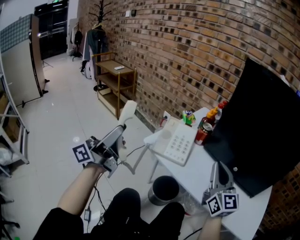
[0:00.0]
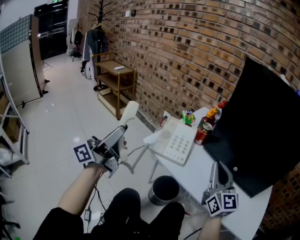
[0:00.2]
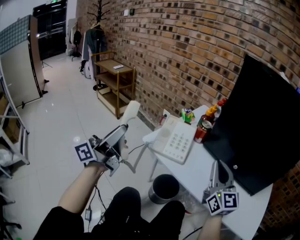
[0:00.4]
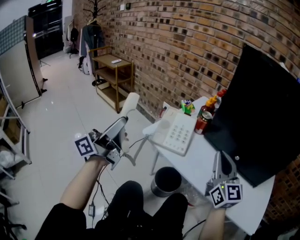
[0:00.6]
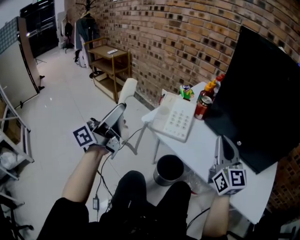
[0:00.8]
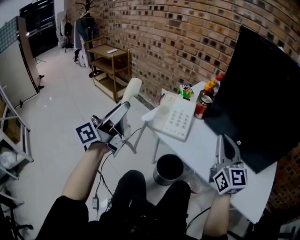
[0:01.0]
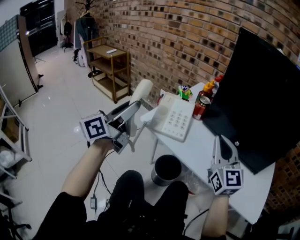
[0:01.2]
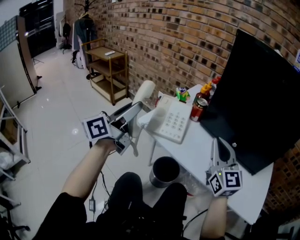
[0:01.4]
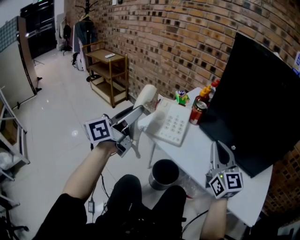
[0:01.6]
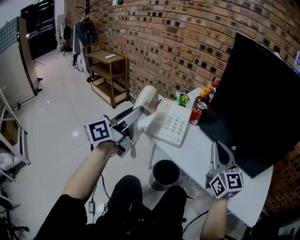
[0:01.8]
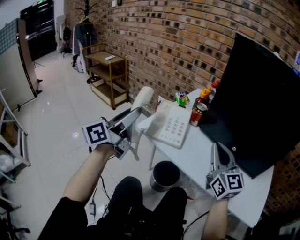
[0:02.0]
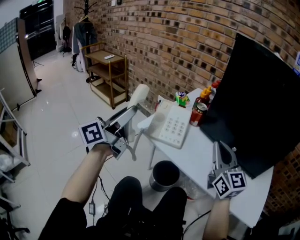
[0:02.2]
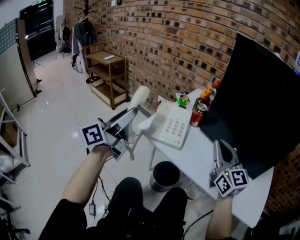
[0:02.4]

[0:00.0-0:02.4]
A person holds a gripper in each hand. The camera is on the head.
0:00.0 to 0:01.2: The left gripper goes some 10 cm forward and to the right, and swivels about 20 degrees.
0:01.2 to 0:02.4: The grippers move only a little.

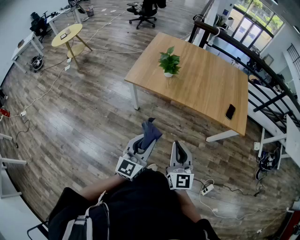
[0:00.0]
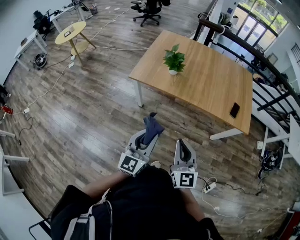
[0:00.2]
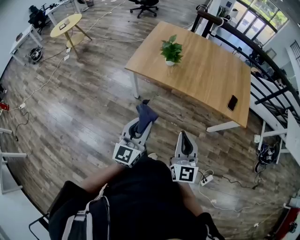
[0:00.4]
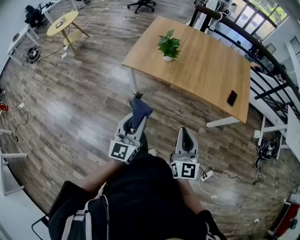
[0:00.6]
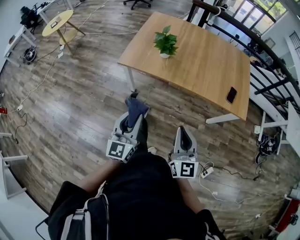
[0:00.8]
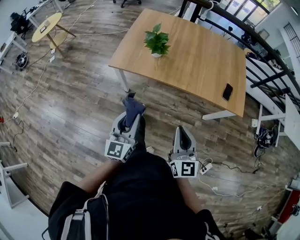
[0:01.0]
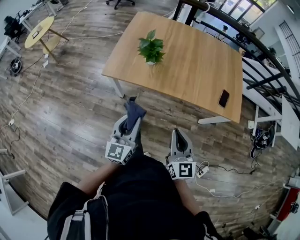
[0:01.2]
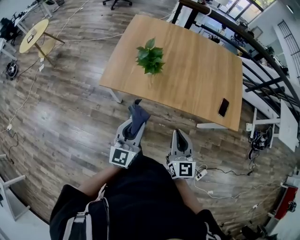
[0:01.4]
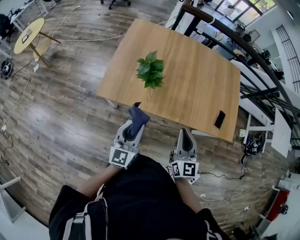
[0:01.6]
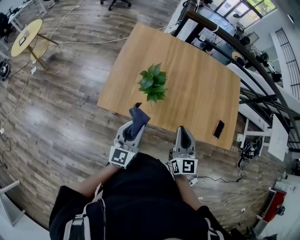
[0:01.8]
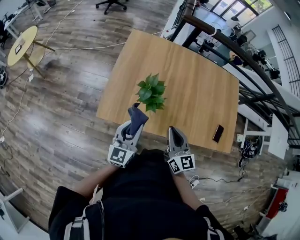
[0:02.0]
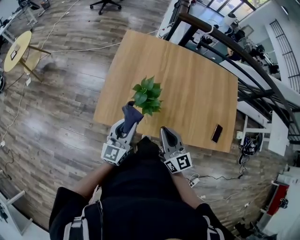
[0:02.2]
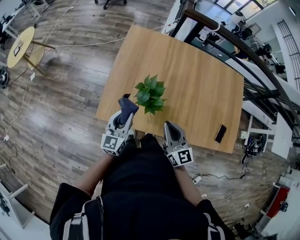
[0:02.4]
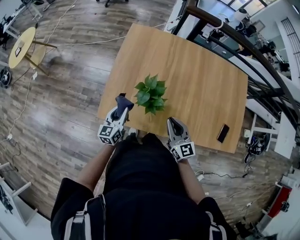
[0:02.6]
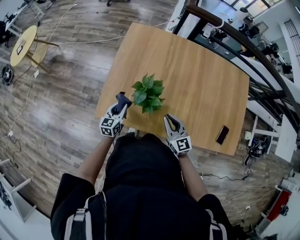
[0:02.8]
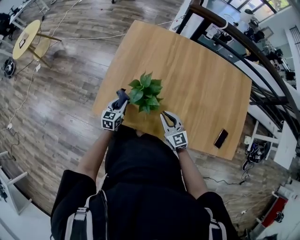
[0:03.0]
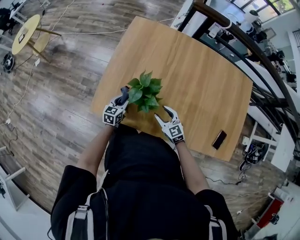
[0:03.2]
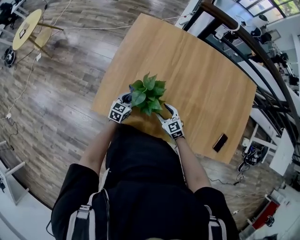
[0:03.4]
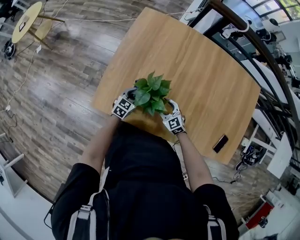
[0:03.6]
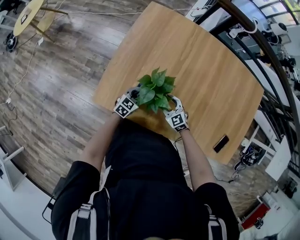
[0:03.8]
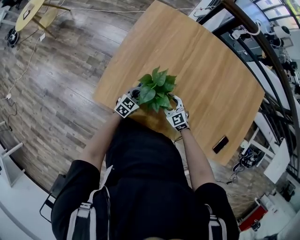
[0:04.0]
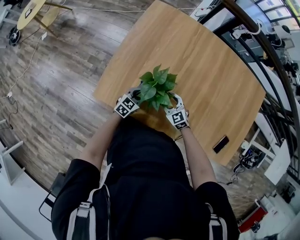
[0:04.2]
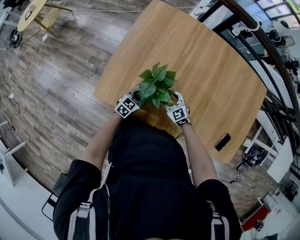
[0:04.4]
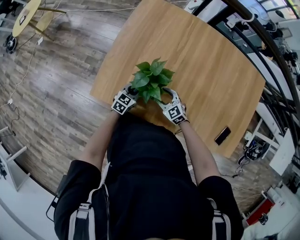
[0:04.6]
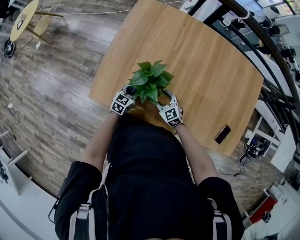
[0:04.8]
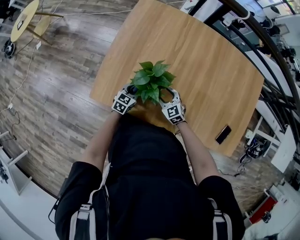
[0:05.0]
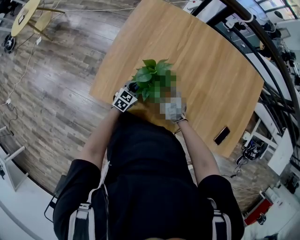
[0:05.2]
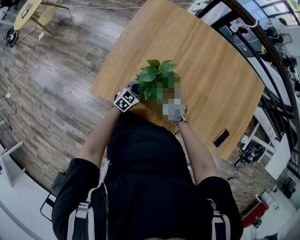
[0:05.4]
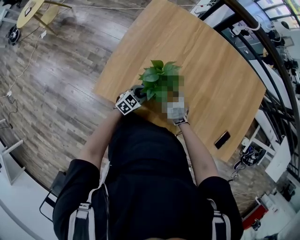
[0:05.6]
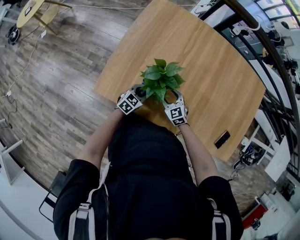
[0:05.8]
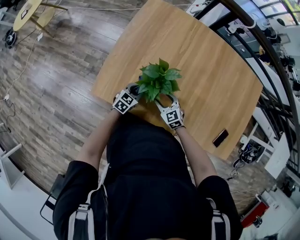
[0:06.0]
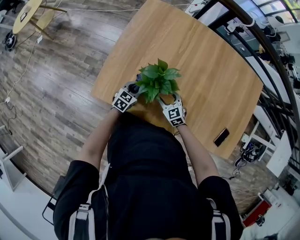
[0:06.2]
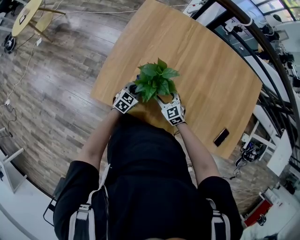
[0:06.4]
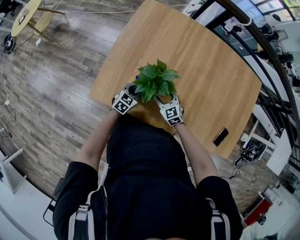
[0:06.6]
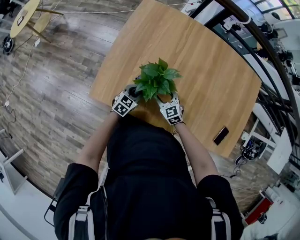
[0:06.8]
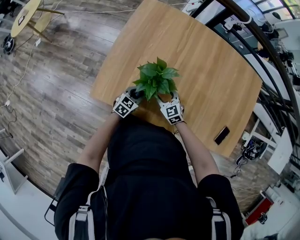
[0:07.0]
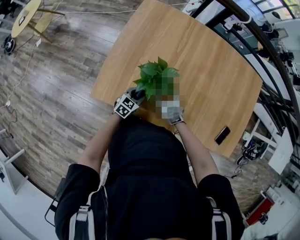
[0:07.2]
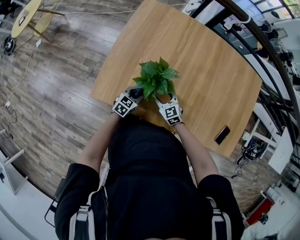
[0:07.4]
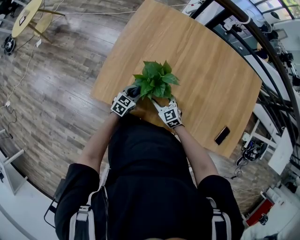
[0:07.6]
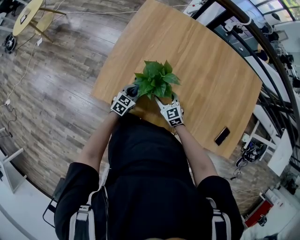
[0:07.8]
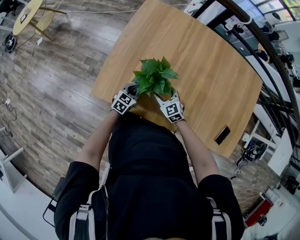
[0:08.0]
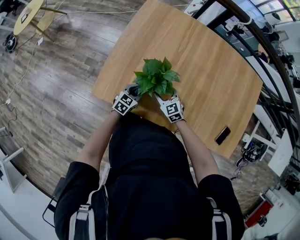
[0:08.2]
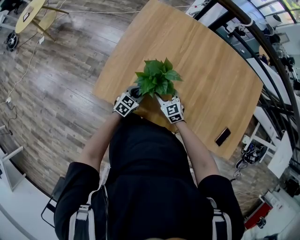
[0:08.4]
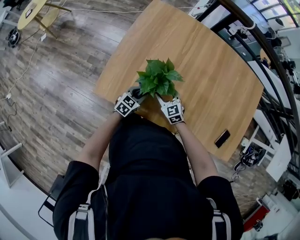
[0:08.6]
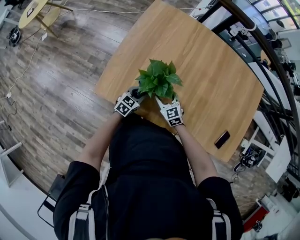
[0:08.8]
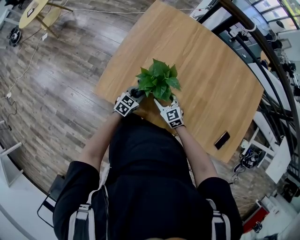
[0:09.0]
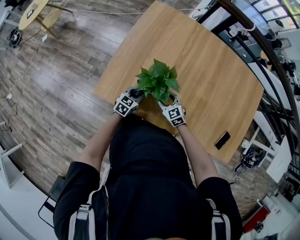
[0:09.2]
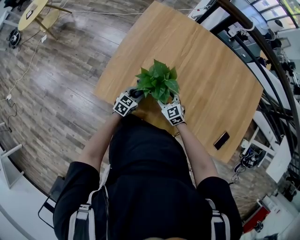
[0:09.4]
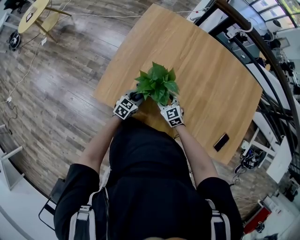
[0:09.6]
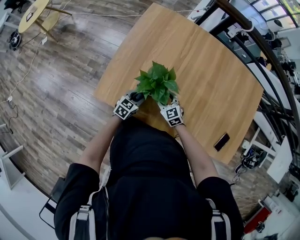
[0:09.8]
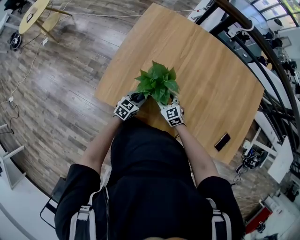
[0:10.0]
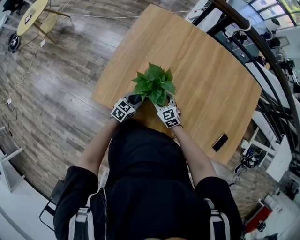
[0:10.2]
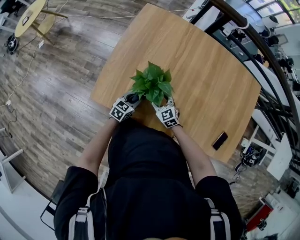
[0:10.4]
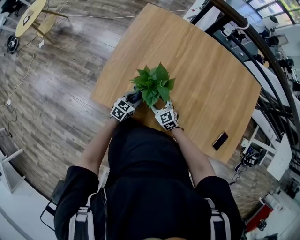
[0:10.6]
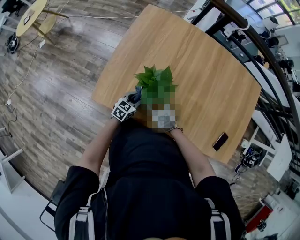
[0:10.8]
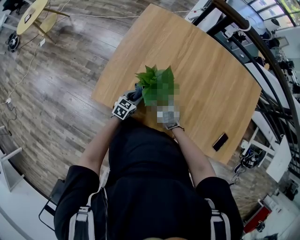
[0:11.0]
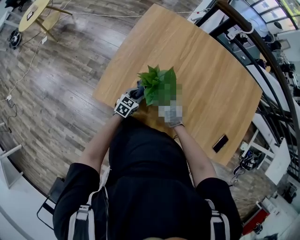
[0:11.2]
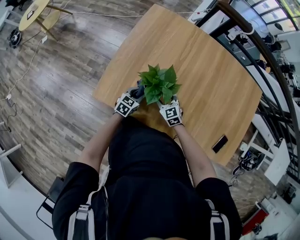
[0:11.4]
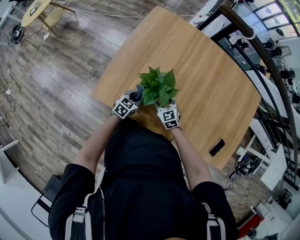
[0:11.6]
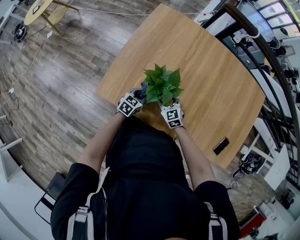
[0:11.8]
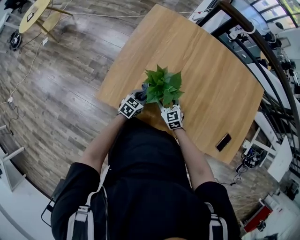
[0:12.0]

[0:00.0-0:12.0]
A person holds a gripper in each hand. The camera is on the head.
0:00.0 to 0:01.6: The two grippers go about 25 cm forward.
0:01.6 to 0:03.0: Both grippers travel together forward and downward, roughly 30 cm. The right gripper turns by about 30 degrees, while the left gripper turns by about 30 degrees.
0:03.0 to 0:04.4: The right gripper shifts about 15 cm downward and forward, turns by some 20 degrees, and opens up. Meanwhile the left gripper goes roughly 10 cm to the right and downward, and turns by roughly 20 degrees.
0:04.4 to 0:12.0: The grippers make only small movements.

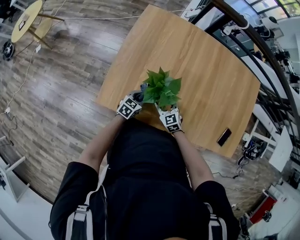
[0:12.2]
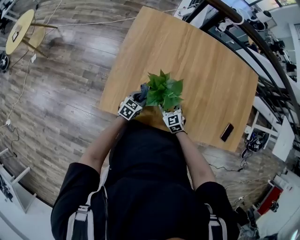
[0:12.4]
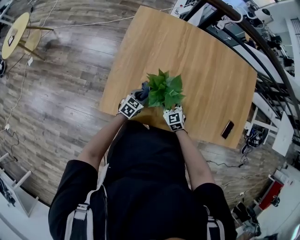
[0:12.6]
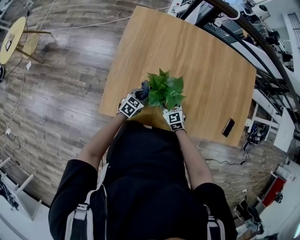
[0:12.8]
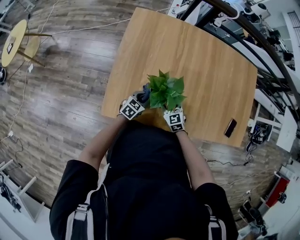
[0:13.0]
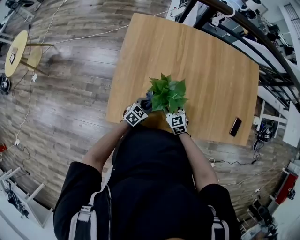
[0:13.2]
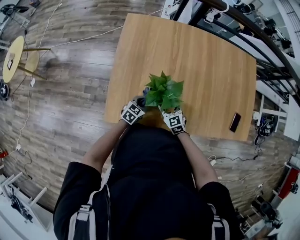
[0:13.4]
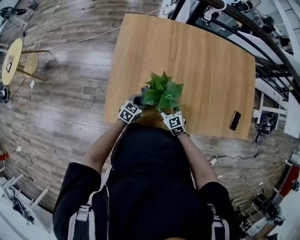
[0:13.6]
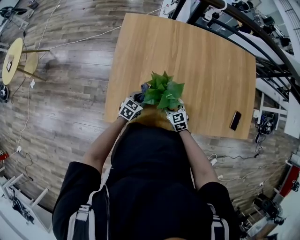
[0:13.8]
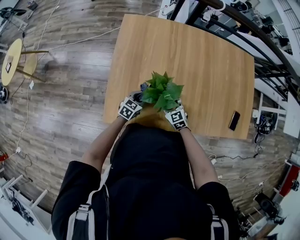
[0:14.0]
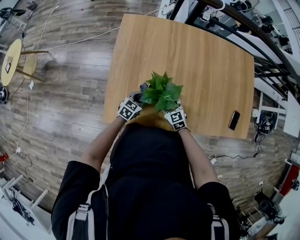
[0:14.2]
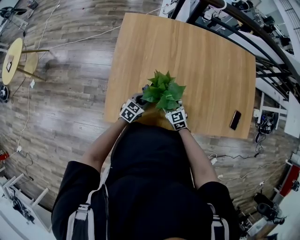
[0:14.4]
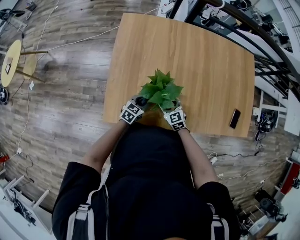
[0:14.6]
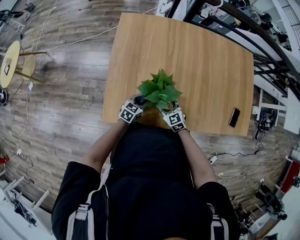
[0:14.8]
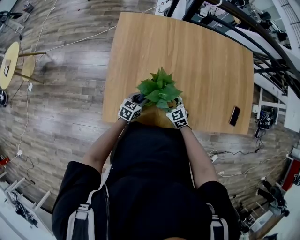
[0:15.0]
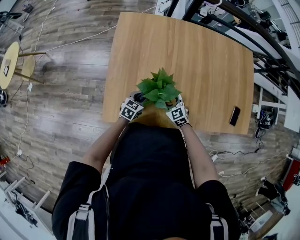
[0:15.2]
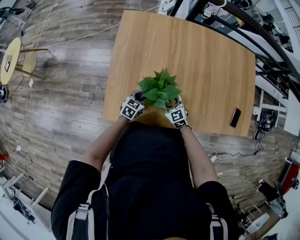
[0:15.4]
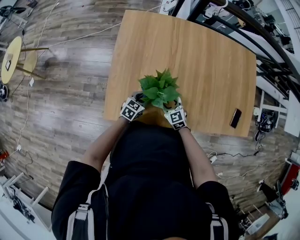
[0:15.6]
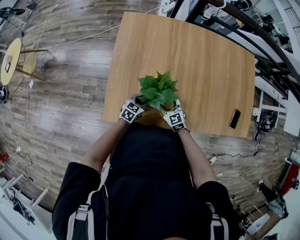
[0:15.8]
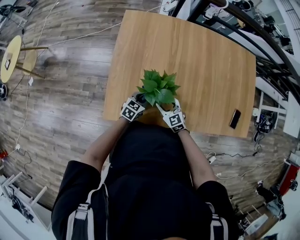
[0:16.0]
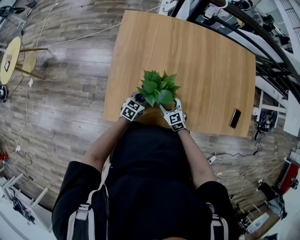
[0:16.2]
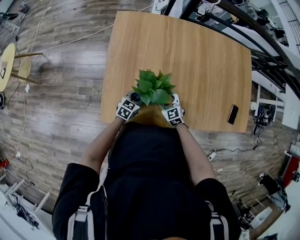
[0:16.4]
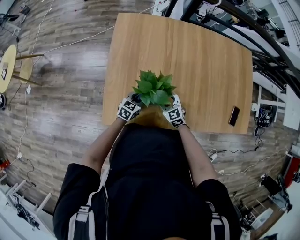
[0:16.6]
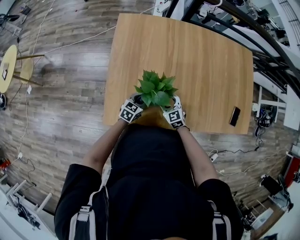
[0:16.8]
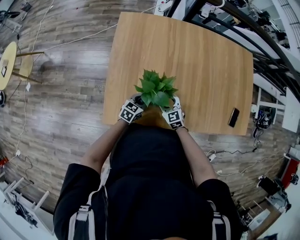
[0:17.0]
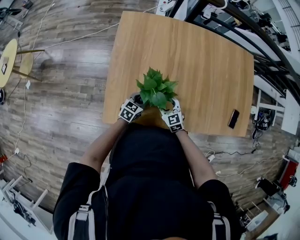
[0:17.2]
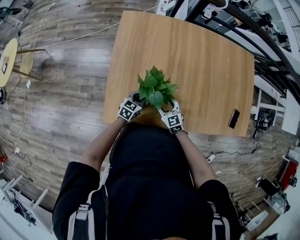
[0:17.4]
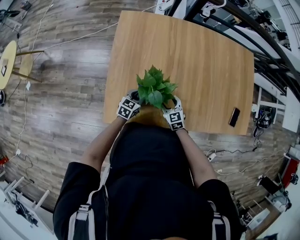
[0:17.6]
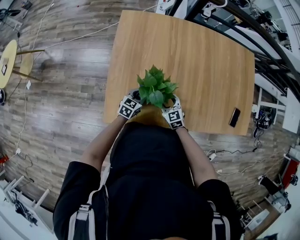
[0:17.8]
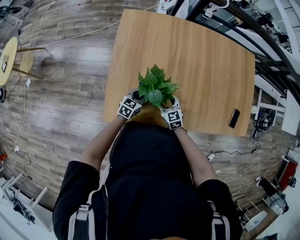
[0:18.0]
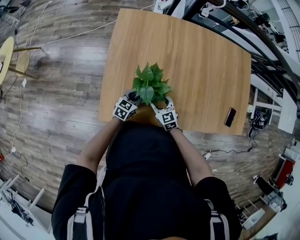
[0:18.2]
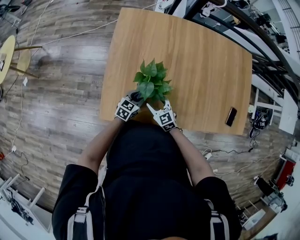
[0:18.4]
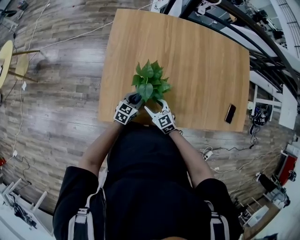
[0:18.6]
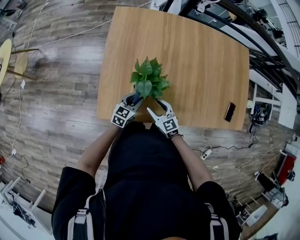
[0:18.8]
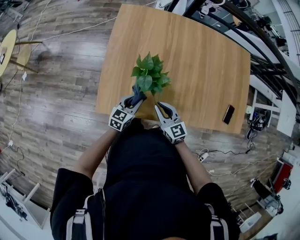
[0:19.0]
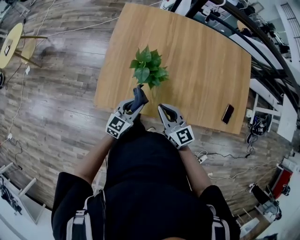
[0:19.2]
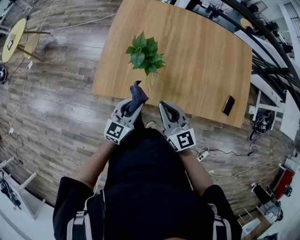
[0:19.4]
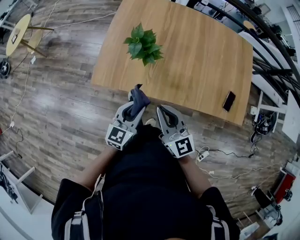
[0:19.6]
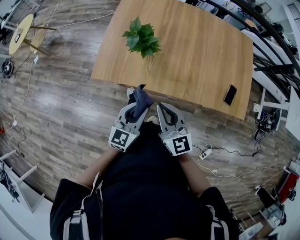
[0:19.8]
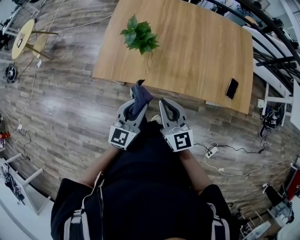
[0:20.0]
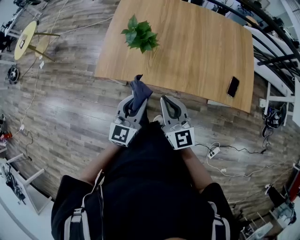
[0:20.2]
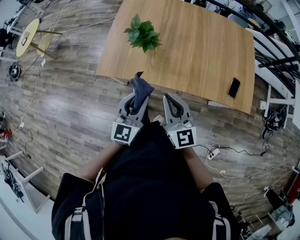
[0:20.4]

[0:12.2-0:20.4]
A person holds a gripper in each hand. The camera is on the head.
0:12.2 to 0:17.2: The grippers stay close to where they were, moving slightly.
0:17.2 to 0:18.8: The right gripper moves backward, roughly 5 cm.
0:18.8 to 0:20.4: The left gripper shifts approximately 30 cm backward and upward, and swivels approximately 30 degrees. Meanwhile the right gripper travels upward, backward and to the right by roughly 30 cm, changes its angle by some 30 degrees, and closes up.

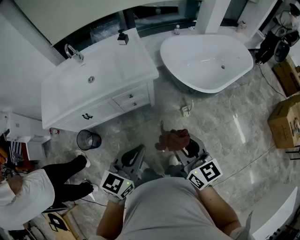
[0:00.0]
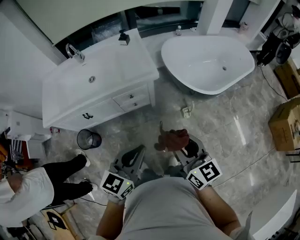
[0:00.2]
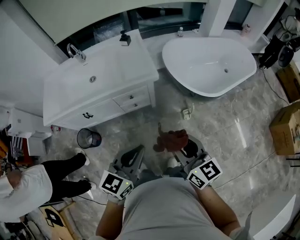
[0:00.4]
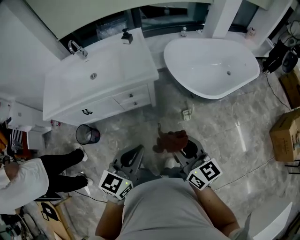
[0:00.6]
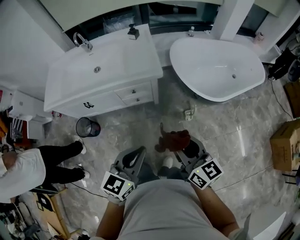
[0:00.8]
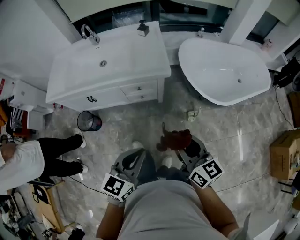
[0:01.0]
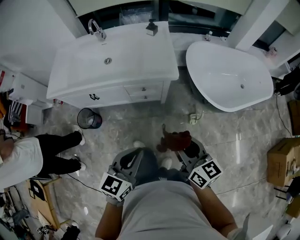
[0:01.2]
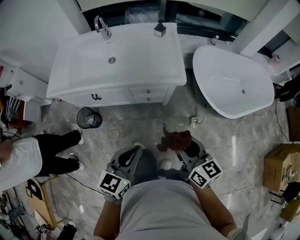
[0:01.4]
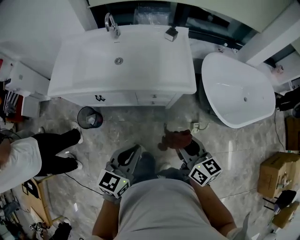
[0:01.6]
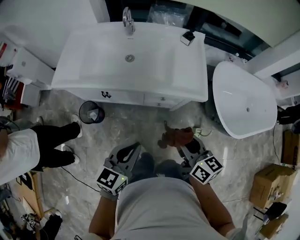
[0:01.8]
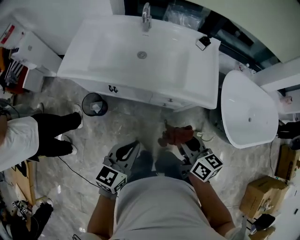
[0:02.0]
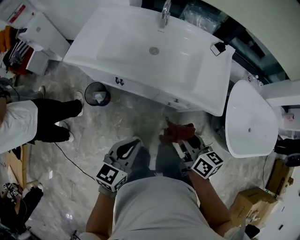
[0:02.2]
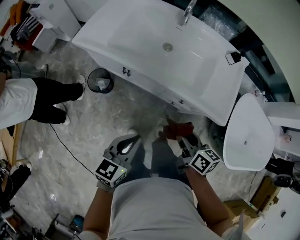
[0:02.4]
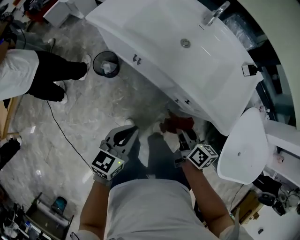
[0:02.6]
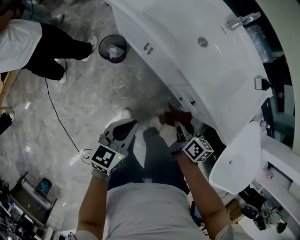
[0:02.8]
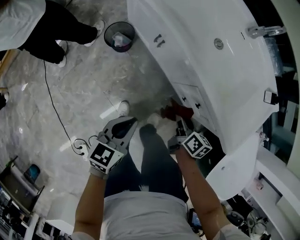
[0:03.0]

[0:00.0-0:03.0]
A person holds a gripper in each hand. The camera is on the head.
0:00.0 to 0:01.6: The right gripper heads forward, to the left and downward, covering about 20 cm, and turns by some 20 degrees. The left gripper travels to the left, forward and downward by approximately 15 cm, and changes its angle by some 20 degrees.
0:01.6 to 0:03.0: Both grippers travel together downward, roughly 25 cm. The left gripper swivels roughly 50 degrees. The right gripper rotates roughly 40 degrees.
